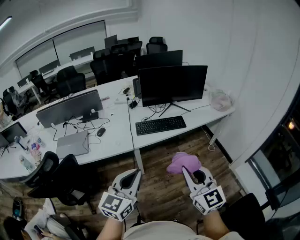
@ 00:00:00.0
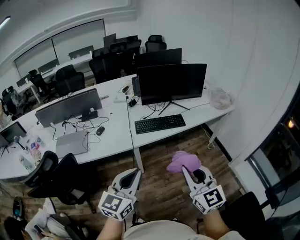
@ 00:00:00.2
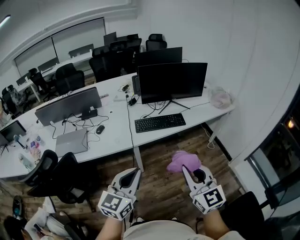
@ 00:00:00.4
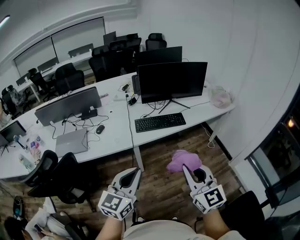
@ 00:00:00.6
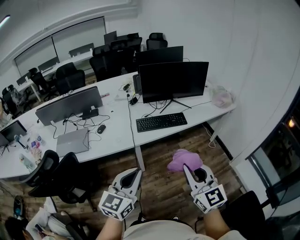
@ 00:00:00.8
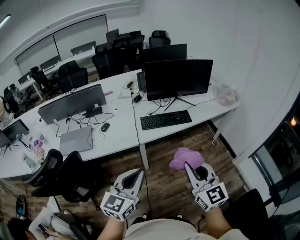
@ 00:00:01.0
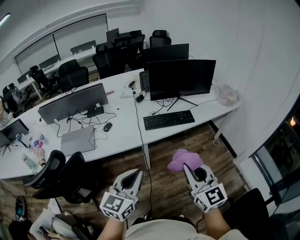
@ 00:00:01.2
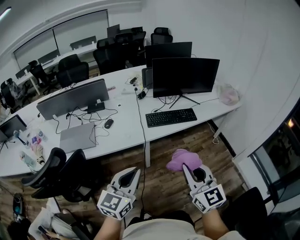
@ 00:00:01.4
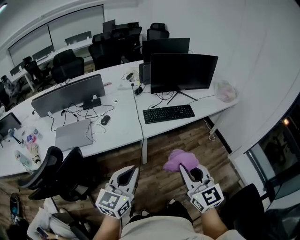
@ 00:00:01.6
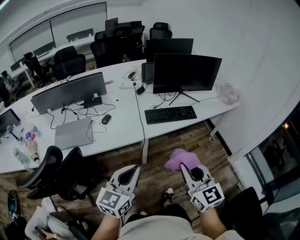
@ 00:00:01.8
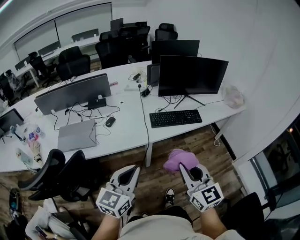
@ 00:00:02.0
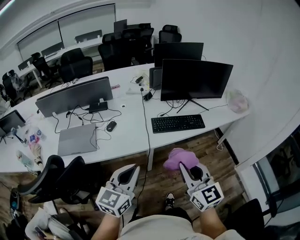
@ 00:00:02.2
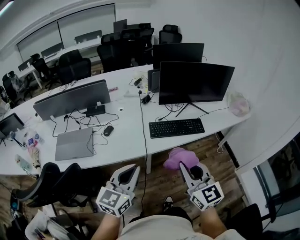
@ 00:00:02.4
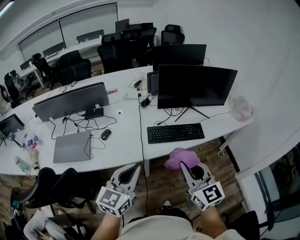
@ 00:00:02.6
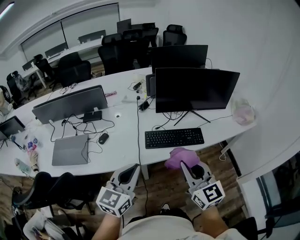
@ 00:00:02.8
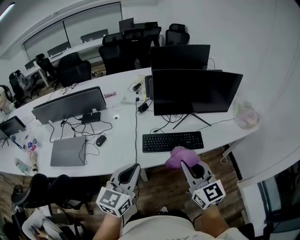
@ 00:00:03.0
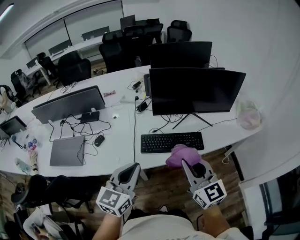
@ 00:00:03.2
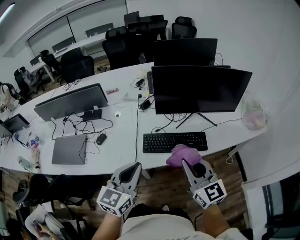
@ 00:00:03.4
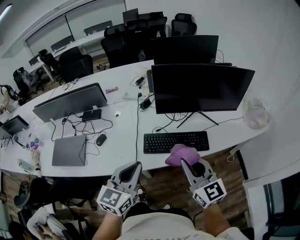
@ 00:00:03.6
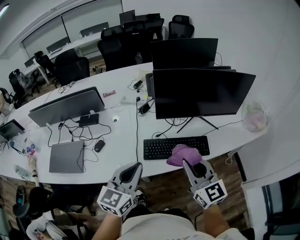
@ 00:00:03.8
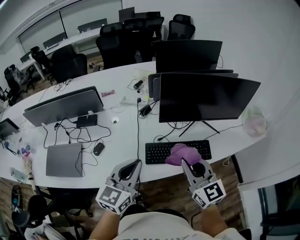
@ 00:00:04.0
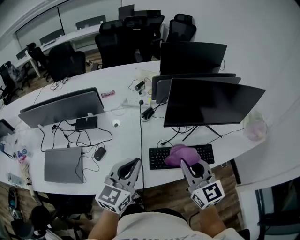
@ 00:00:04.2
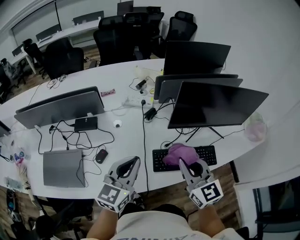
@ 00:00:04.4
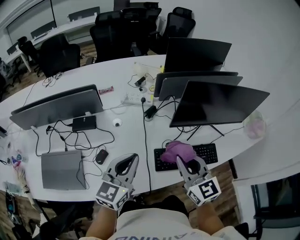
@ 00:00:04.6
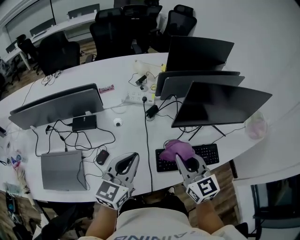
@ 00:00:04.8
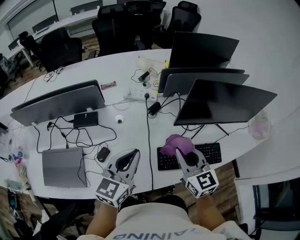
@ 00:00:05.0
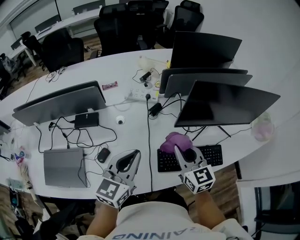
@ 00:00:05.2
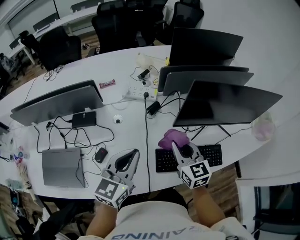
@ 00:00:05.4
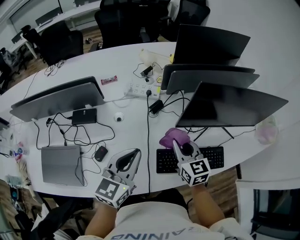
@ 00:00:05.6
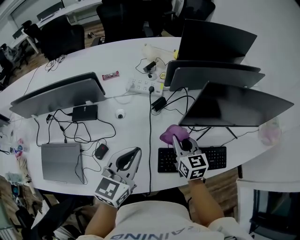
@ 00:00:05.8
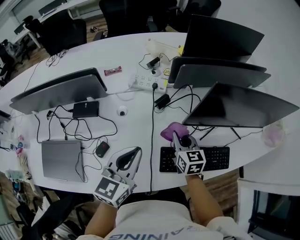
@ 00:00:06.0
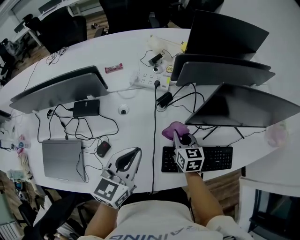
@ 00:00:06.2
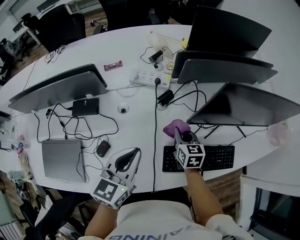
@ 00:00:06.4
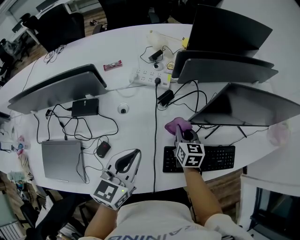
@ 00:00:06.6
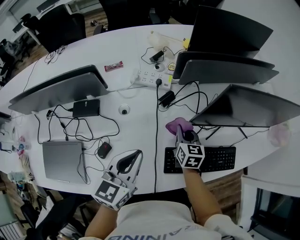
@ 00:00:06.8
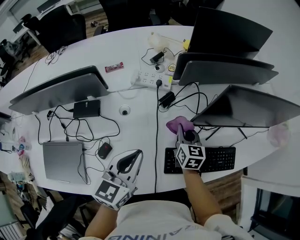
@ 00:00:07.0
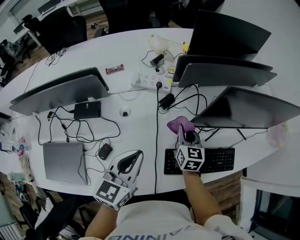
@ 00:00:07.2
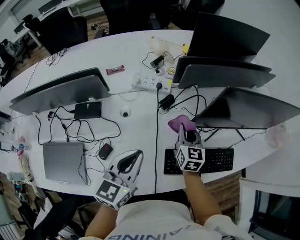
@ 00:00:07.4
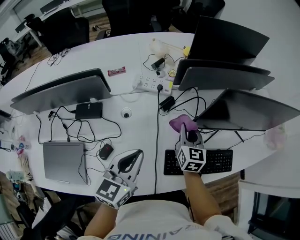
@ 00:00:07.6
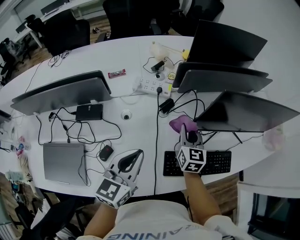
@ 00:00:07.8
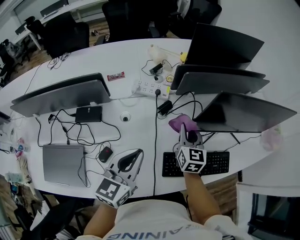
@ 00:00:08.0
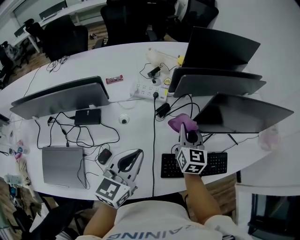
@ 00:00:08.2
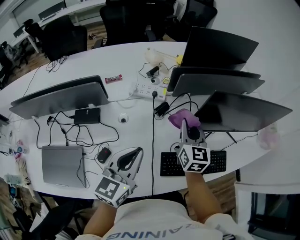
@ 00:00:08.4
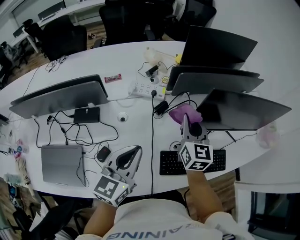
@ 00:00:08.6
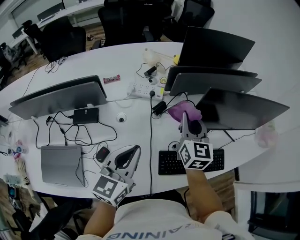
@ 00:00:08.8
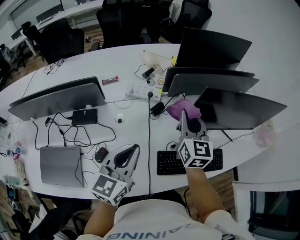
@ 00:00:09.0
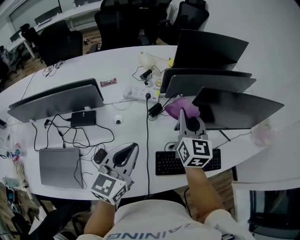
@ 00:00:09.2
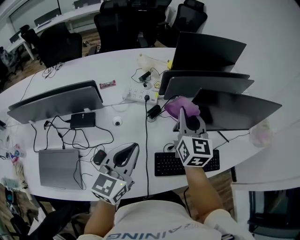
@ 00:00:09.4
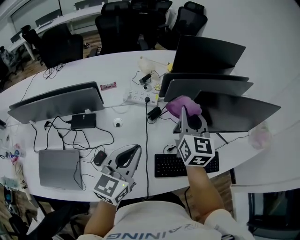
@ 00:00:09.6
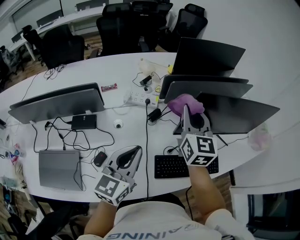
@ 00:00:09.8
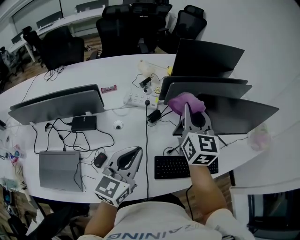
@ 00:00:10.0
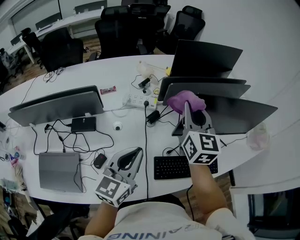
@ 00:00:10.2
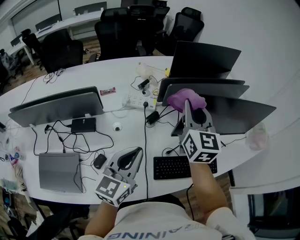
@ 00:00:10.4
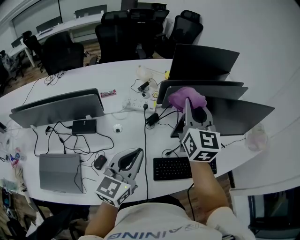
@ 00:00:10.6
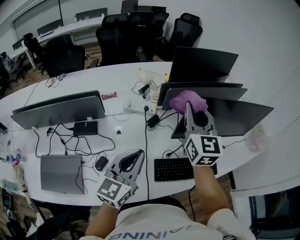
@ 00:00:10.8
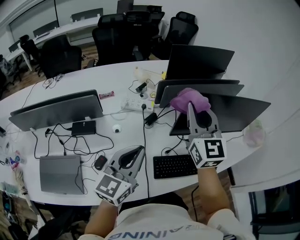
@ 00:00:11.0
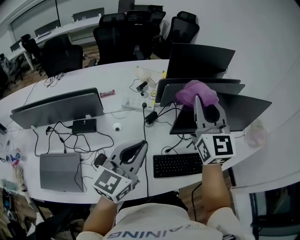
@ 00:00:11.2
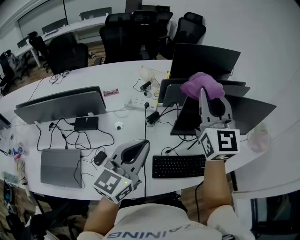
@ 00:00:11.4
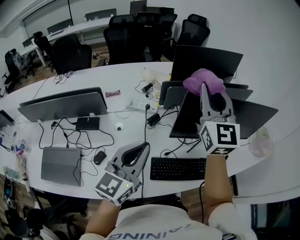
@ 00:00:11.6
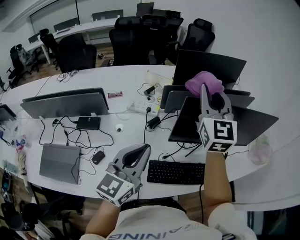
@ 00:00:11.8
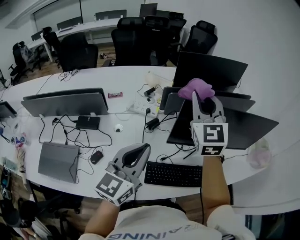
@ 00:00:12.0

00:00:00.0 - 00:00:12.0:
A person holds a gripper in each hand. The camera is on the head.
00:00:00.0 - 00:00:01.6: The two grippers go roughly 10 cm to the left.
00:00:01.6 - 00:00:03.0: Both grippers travel together forward, roughly 25 cm.
00:00:03.0 - 00:00:04.4: Both grippers travel together forward and to the left, approximately 20 cm.
00:00:04.4 - 00:00:06.0: The left gripper shifts approximately 10 cm forward and downward. Meanwhile the right gripper heads downward and forward, covering approximately 25 cm, and rotates about 20 degrees.
00:00:06.0 - 00:00:07.6: The right gripper moves approximately 5 cm.
00:00:07.6 - 00:00:09.0: The right gripper is displaced upward by approximately 15 cm.
00:00:09.0 - 00:00:10.4: The right gripper goes about 10 cm upward.
00:00:10.4 - 00:00:12.0: The right gripper goes about 5 cm upward, and changes its angle by about 20 degrees. The left gripper travels to the right and upward by some 10 cm.

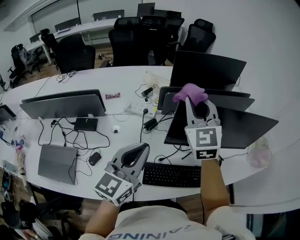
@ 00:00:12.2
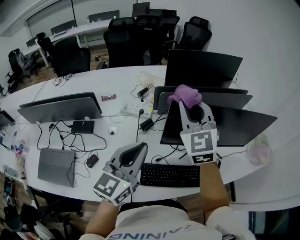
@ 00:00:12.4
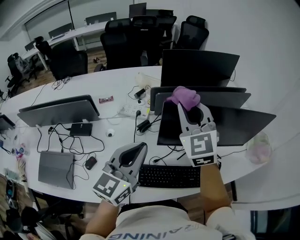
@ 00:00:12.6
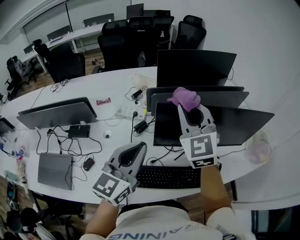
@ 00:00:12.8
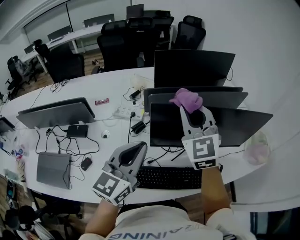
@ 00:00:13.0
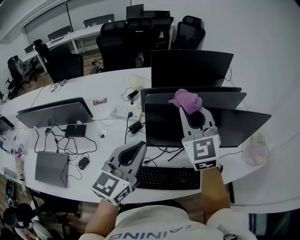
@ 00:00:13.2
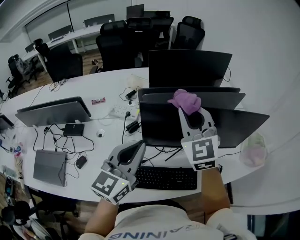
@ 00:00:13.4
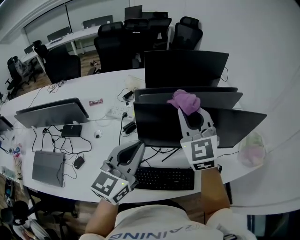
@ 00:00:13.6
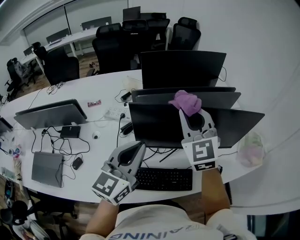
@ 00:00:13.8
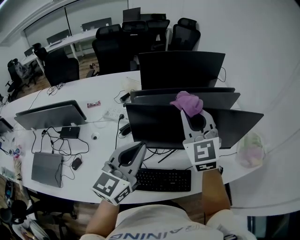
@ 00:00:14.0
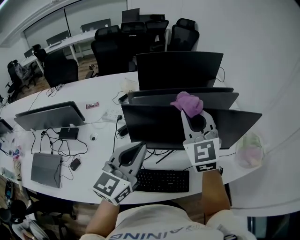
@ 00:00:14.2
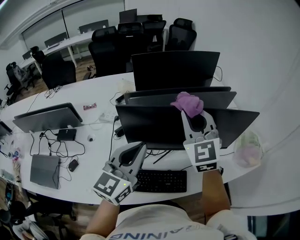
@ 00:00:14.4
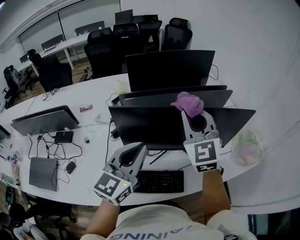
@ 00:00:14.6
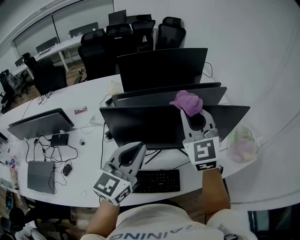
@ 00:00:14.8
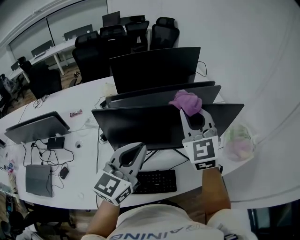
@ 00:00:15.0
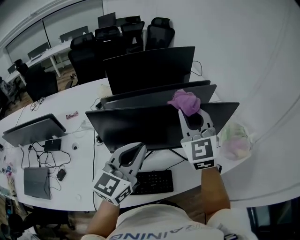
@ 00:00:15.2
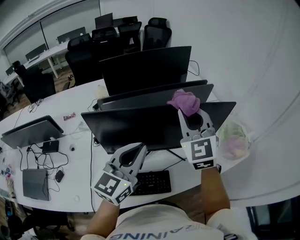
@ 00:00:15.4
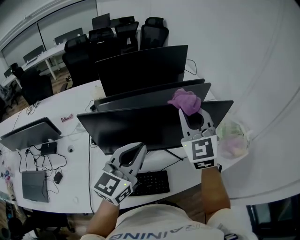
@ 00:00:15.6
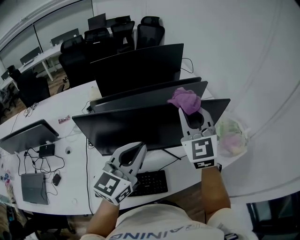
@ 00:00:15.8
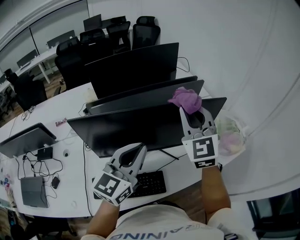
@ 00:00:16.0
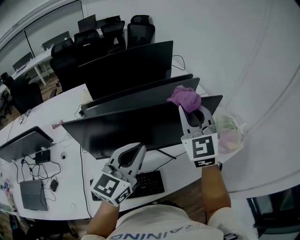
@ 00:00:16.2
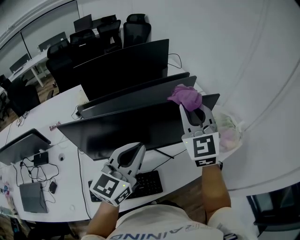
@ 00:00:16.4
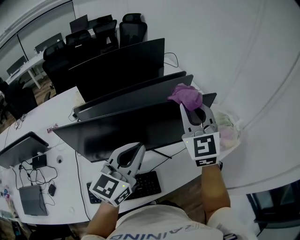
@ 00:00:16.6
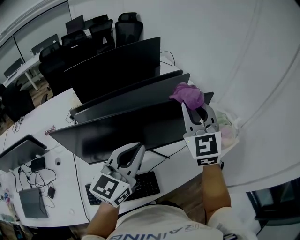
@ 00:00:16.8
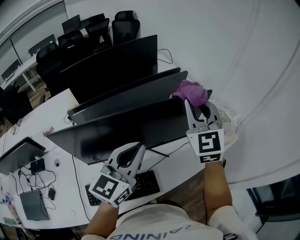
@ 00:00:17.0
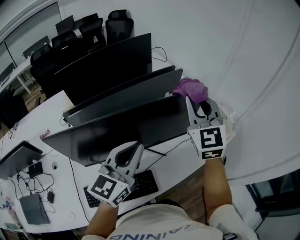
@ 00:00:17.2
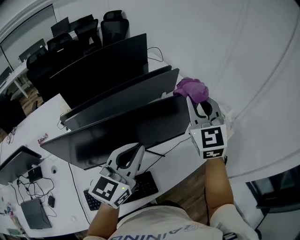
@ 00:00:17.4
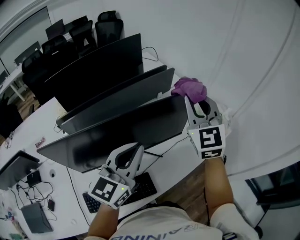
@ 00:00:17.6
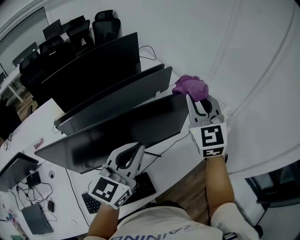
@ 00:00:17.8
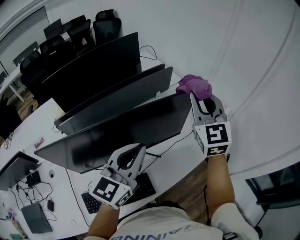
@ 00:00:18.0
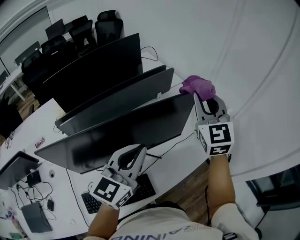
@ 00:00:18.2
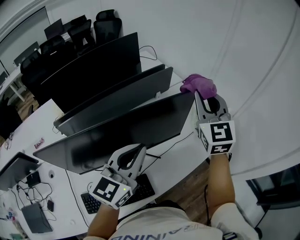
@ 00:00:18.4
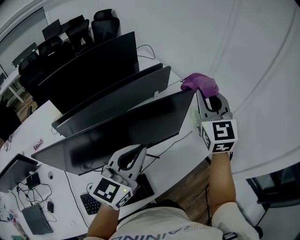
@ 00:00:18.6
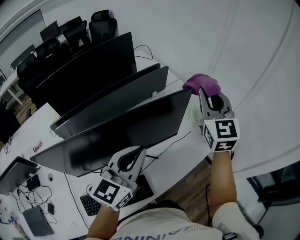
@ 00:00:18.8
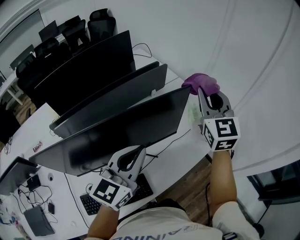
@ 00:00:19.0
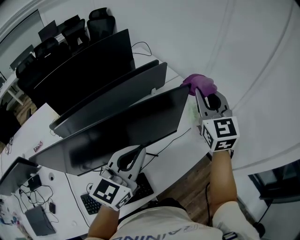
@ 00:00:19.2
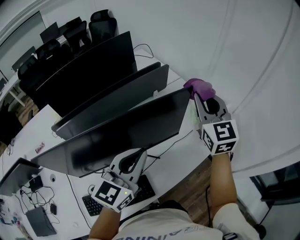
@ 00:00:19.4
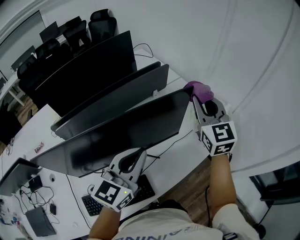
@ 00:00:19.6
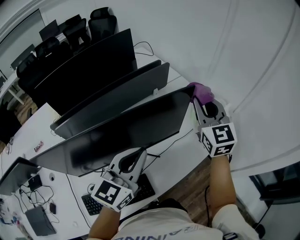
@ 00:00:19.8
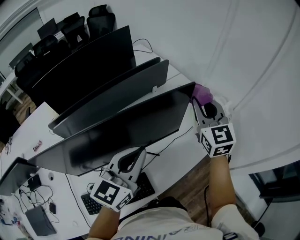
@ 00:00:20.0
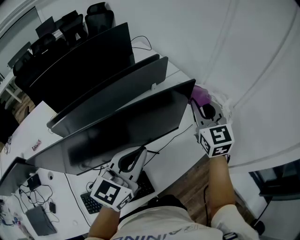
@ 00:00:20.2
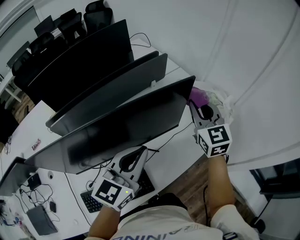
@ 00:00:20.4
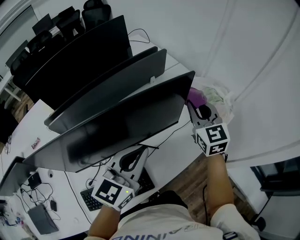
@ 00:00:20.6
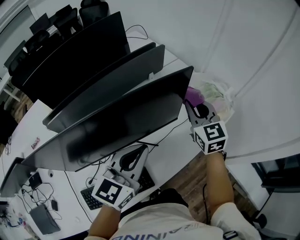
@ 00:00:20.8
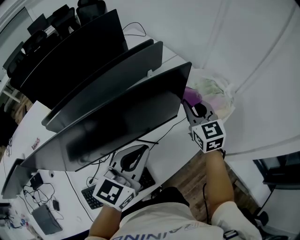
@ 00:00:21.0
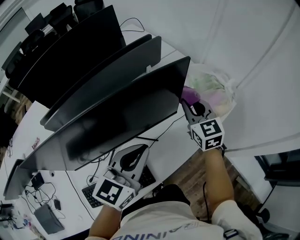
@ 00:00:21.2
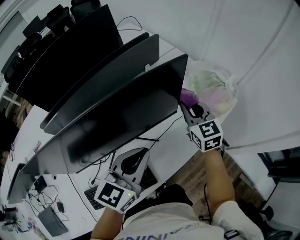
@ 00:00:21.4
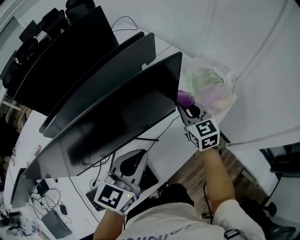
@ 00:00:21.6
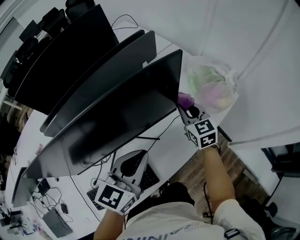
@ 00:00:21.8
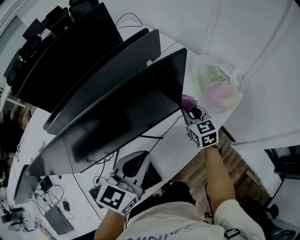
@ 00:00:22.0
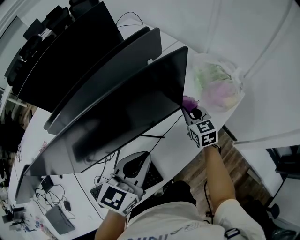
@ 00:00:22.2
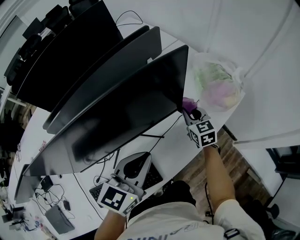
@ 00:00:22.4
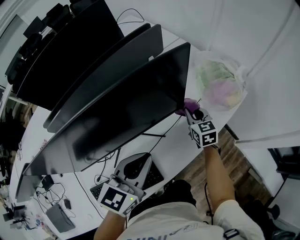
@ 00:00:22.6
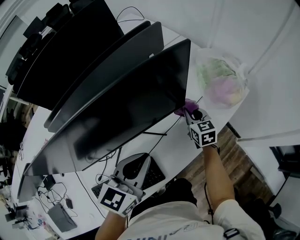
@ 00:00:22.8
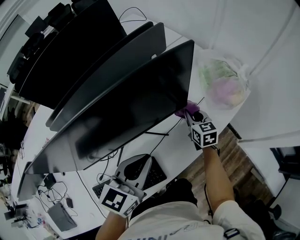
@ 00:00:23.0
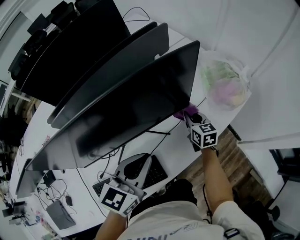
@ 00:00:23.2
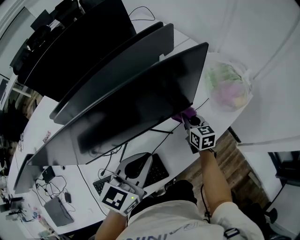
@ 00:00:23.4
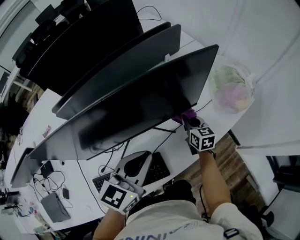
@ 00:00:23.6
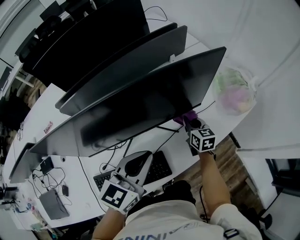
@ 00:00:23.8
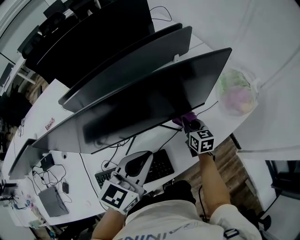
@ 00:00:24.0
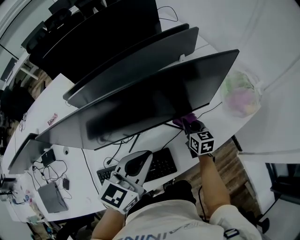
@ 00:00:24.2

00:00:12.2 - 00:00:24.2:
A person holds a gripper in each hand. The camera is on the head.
00:00:12.2 - 00:00:13.8: The two grippers go approximately 15 cm to the right.
00:00:13.8 - 00:00:15.2: The grippers both shift to the right by some 15 cm.
00:00:15.2 - 00:00:16.6: The two grippers go approximately 10 cm to the right.
00:00:16.6 - 00:00:18.2: The left gripper shifts roughly 5 cm to the right. The right gripper heads to the right and forward, covering about 15 cm.
00:00:18.2 - 00:00:19.8: The right gripper heads downward, covering some 5 cm.
00:00:19.8 - 00:00:21.2: The right gripper travels downward by some 15 cm, while the left gripper is displaced downward by about 5 cm.
00:00:21.2 - 00:00:22.6: The right gripper travels downward by some 15 cm.
00:00:22.6 - 00:00:24.2: Both grippers move to the left and backward, about 10 cm.
